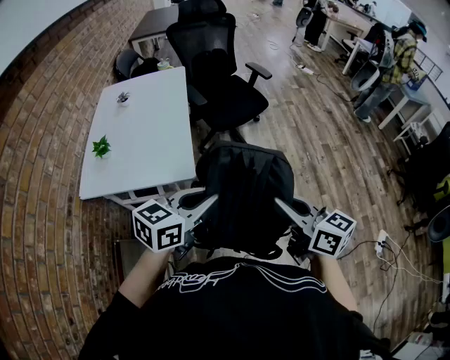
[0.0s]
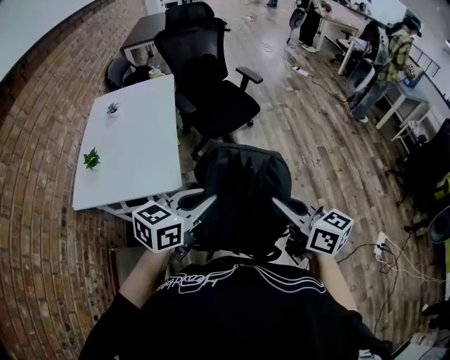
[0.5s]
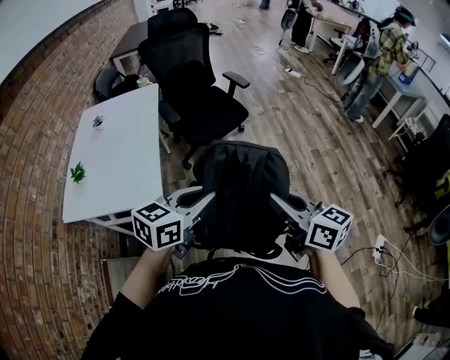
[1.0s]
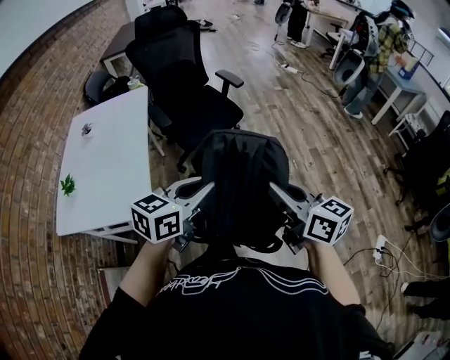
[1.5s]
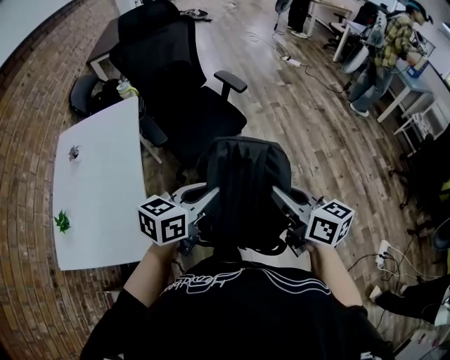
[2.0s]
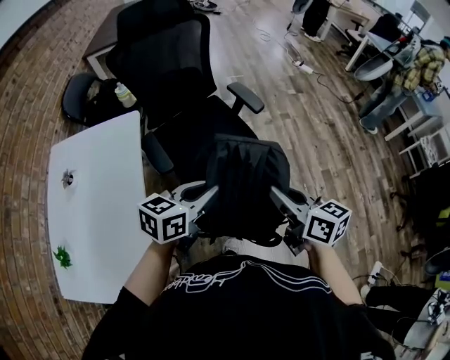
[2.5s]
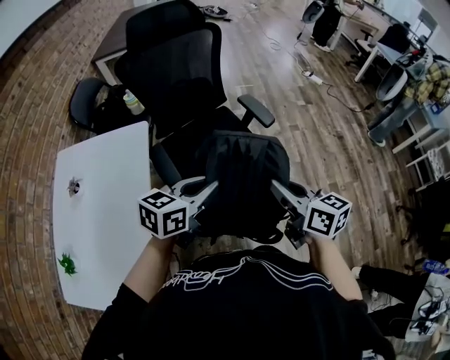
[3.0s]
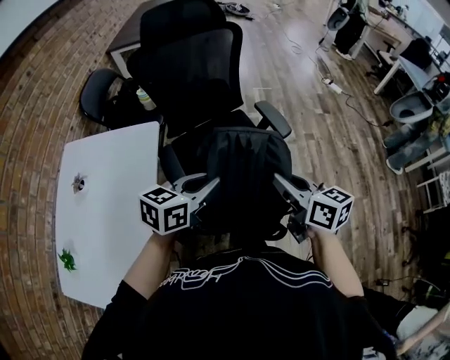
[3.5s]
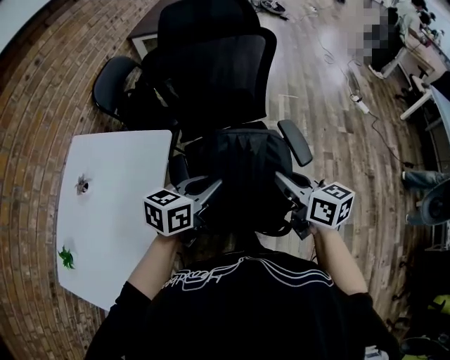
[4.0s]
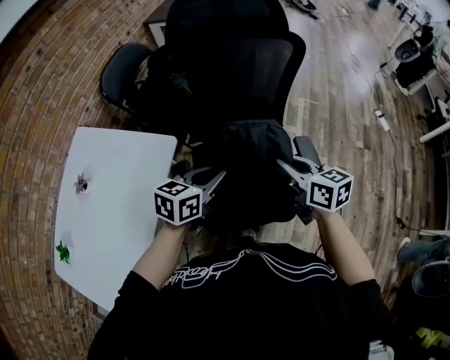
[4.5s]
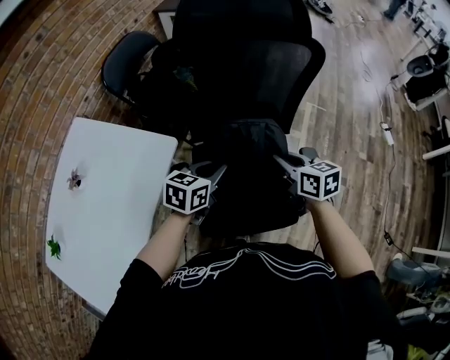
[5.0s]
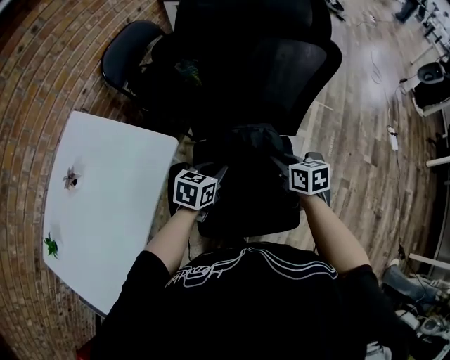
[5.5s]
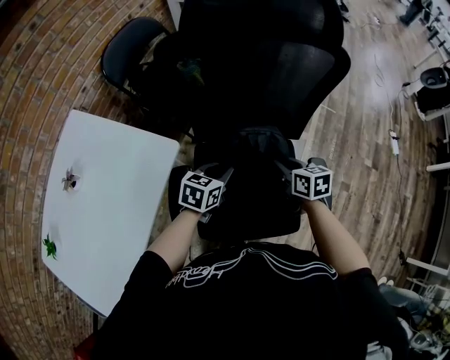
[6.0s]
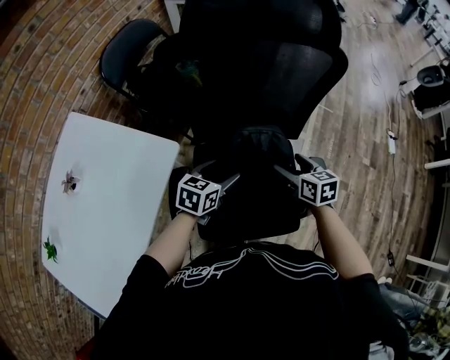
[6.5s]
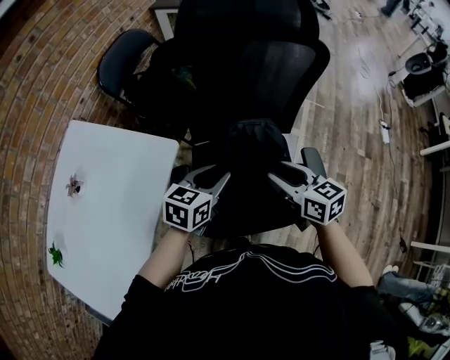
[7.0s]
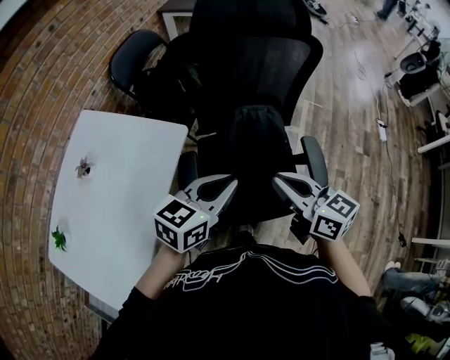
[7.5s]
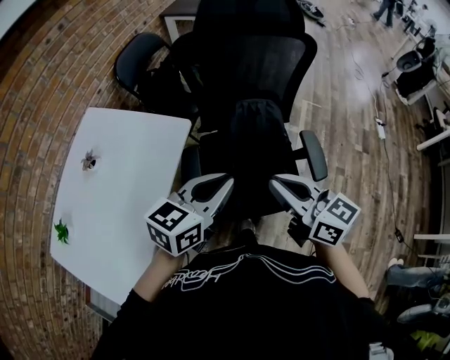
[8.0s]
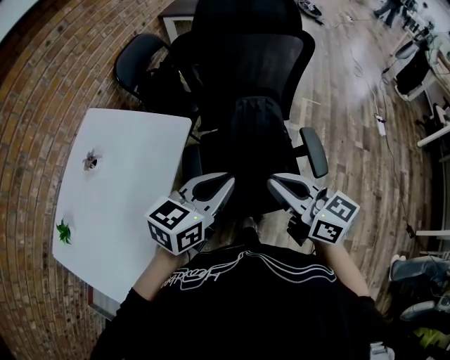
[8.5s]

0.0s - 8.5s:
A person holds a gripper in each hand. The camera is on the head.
0.0s - 2.0s: Both grippers move forward, approximately 30 cm.
2.0s - 4.0s: Both grippers are carried forward, roughly 50 cm. The left gripper swivels about 20 degrees, while the right gripper changes its angle by about 20 degrees.
4.0s - 6.5s: The grippers both shift forward and downward by about 30 cm. The left gripper opens up. Meanwhile the right gripper swivels some 20 degrees, and opens.
6.5s - 8.5s: The left gripper goes some 30 cm upward and backward, changes its angle by roughly 20 degrees, and closes up, while the right gripper heads backward, upward and to the left, covering some 35 cm, tips its fingers upward by some 30 degrees, and closes its fingers.

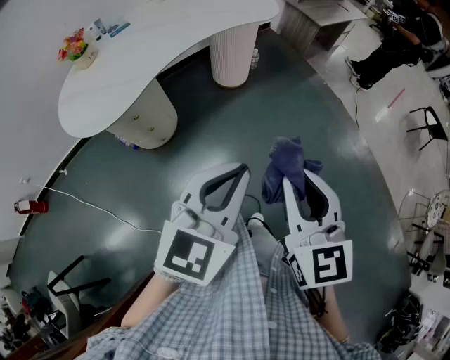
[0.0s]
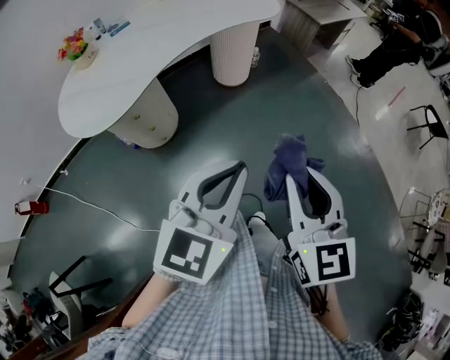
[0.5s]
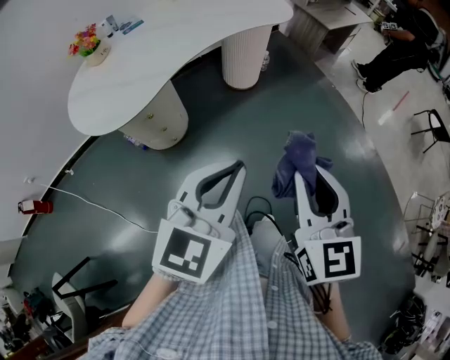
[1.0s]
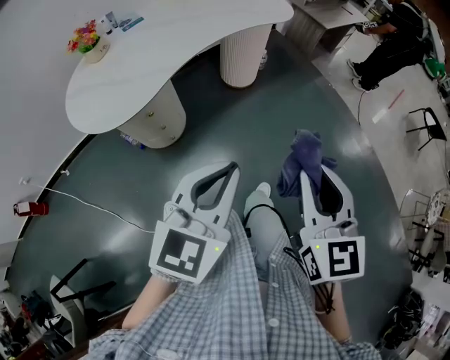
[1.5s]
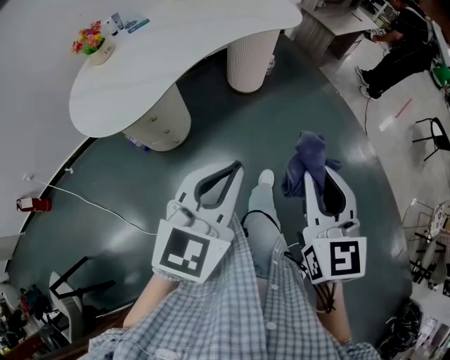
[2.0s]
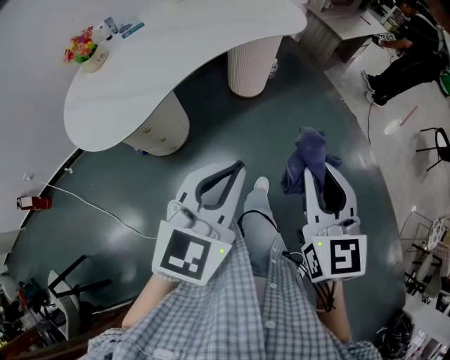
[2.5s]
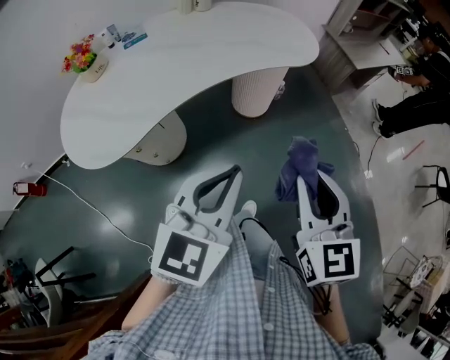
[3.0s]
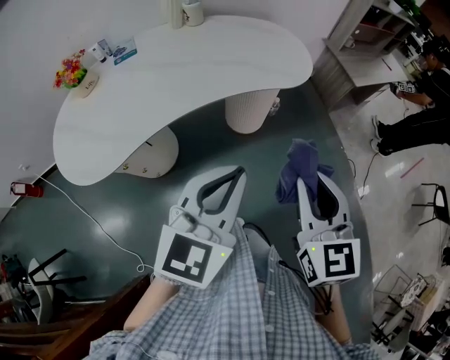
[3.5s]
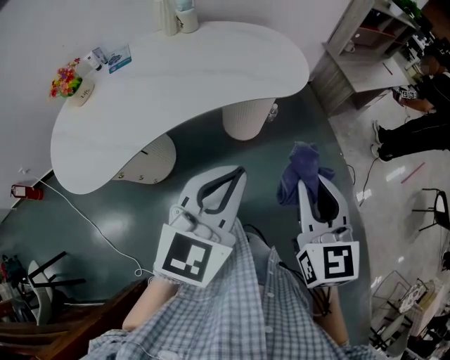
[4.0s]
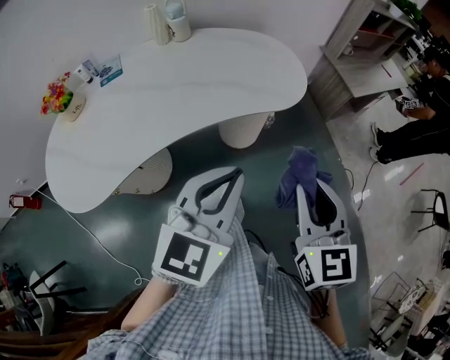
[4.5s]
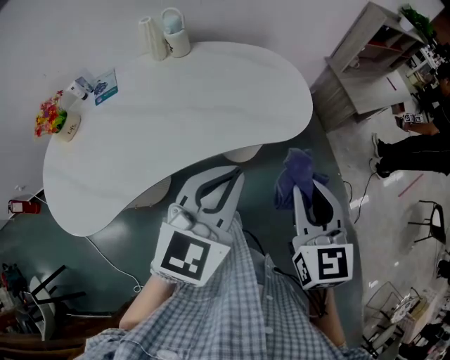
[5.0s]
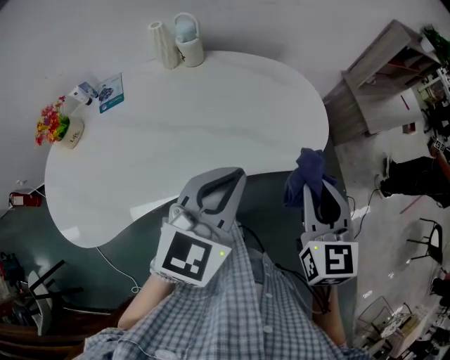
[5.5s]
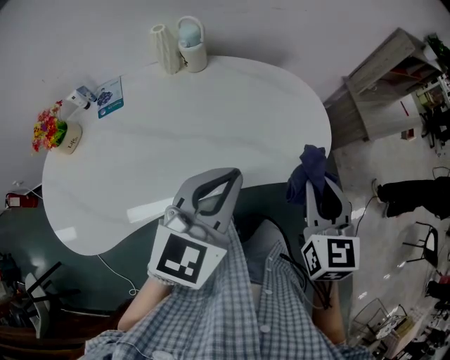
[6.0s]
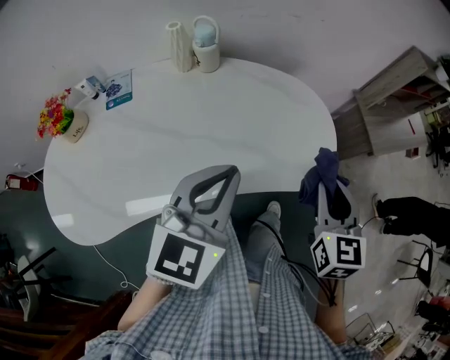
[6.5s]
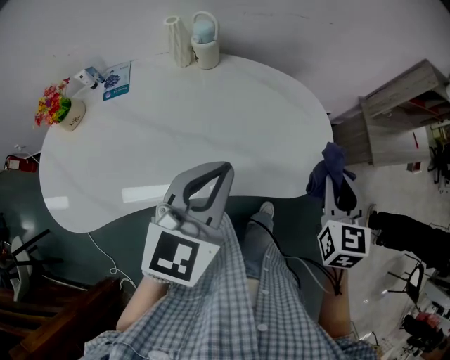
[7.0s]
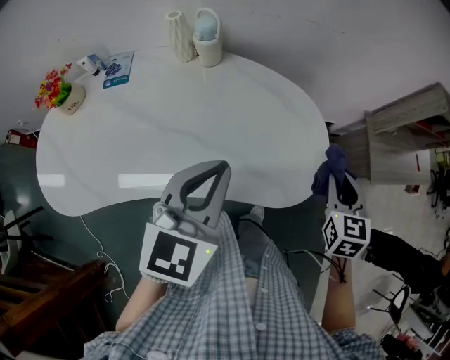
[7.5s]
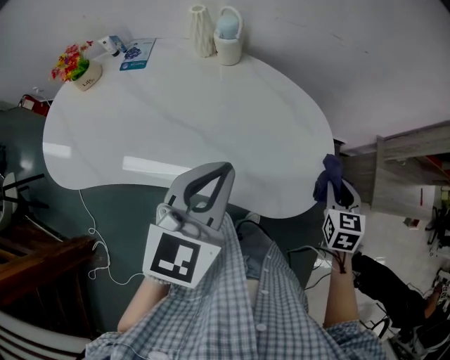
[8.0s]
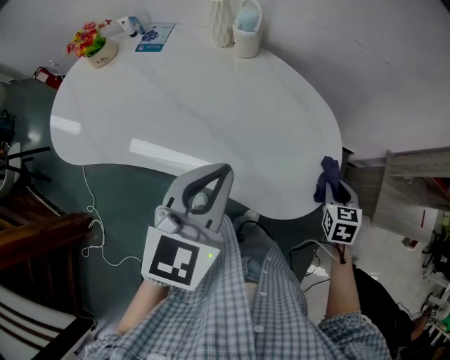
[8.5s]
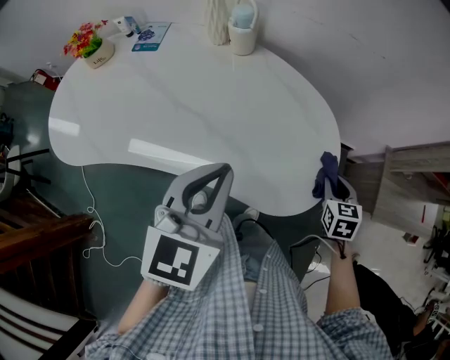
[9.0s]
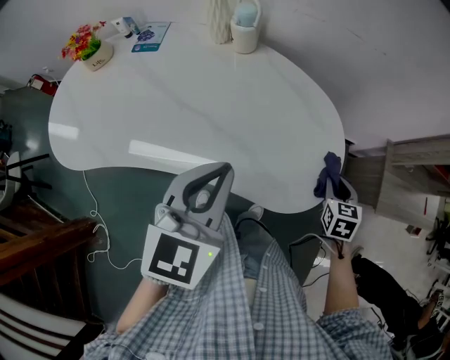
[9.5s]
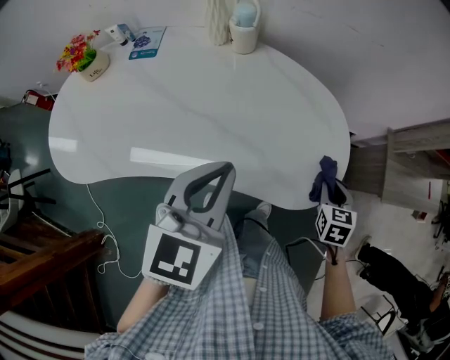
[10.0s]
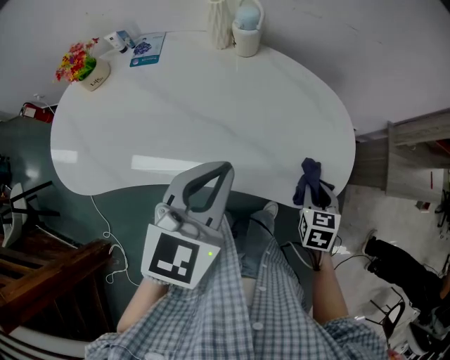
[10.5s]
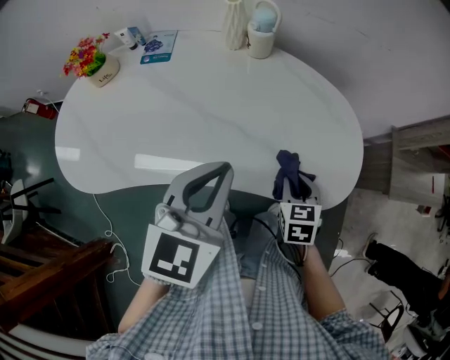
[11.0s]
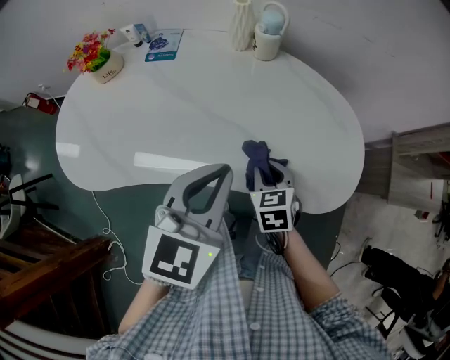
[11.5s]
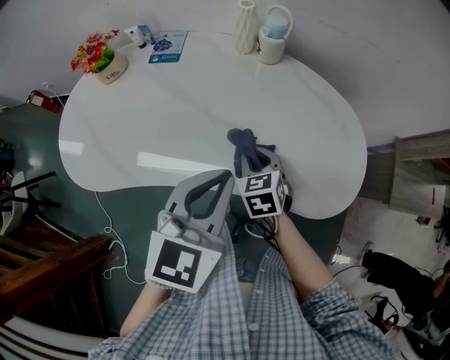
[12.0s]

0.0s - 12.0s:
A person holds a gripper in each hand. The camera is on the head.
0.0s - 2.0s: The right gripper moves approximately 5 cm; the left gripper shifts approximately 10 cm to the left.
2.0s - 4.0s: Both grippers move forward, about 35 cm.
4.0s - 6.0s: Both grippers move forward, roughly 30 cm.
6.0s - 8.0s: The left gripper goes approximately 10 cm forward, and rotates about 30 degrees, while the right gripper moves forward, to the right and downward, roughly 30 cm, and rotates roughly 30 degrees.
8.0s - 10.0s: The right gripper heads downward, covering roughly 5 cm.
10.0s - 12.0s: The right gripper heads to the left, covering some 35 cm, and turns by about 30 degrees. Meanwhile the left gripper is displaced to the left by some 10 cm.

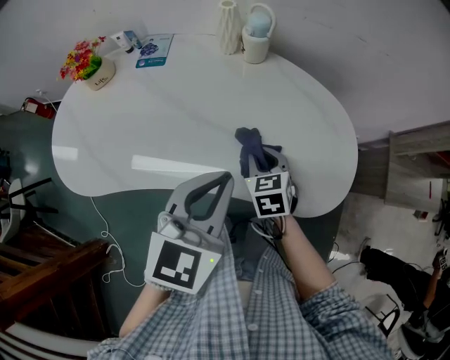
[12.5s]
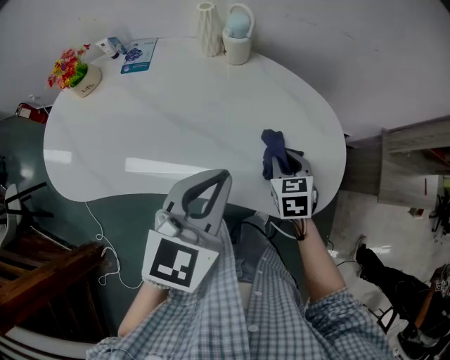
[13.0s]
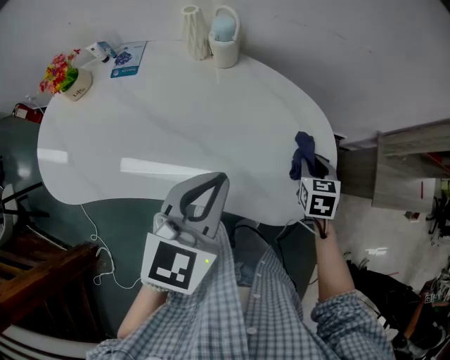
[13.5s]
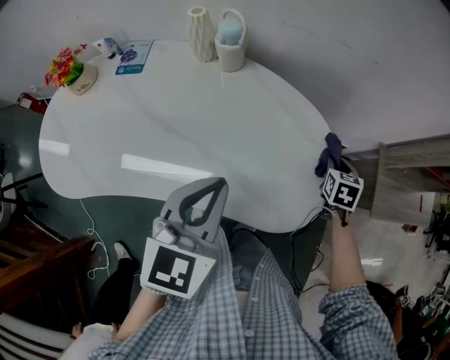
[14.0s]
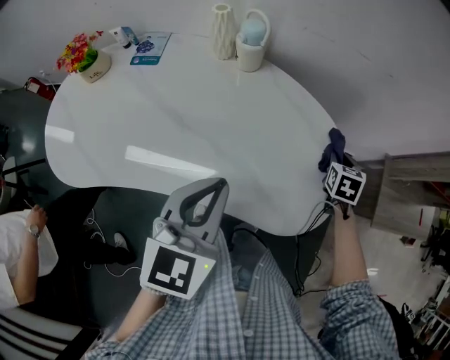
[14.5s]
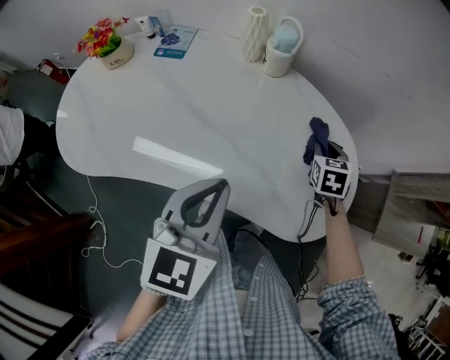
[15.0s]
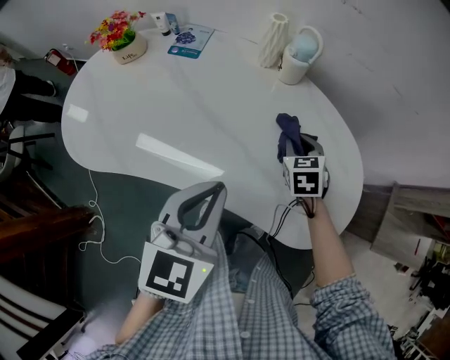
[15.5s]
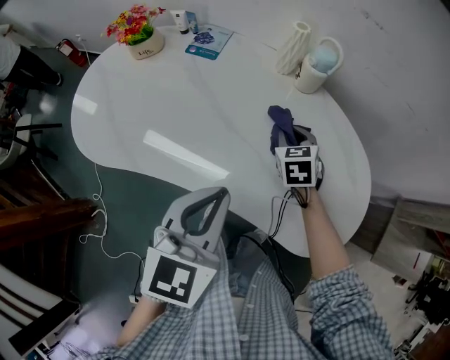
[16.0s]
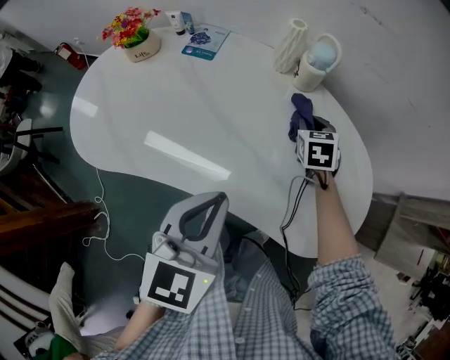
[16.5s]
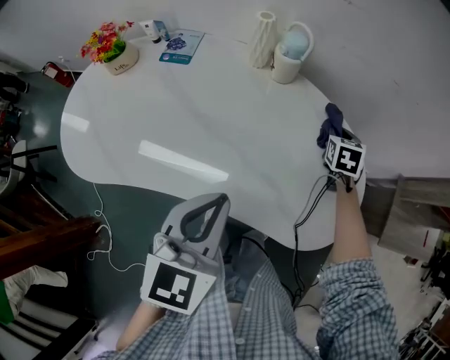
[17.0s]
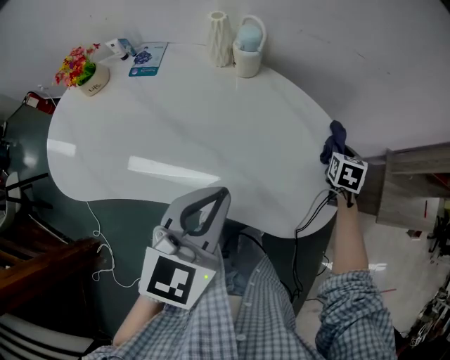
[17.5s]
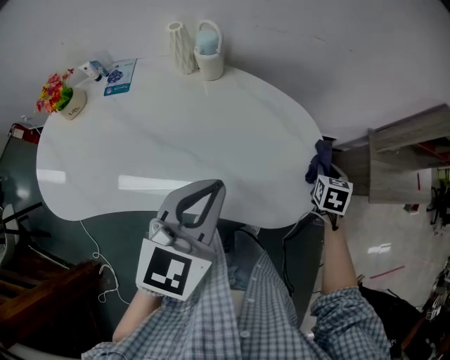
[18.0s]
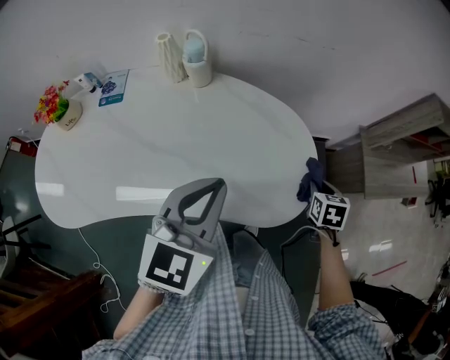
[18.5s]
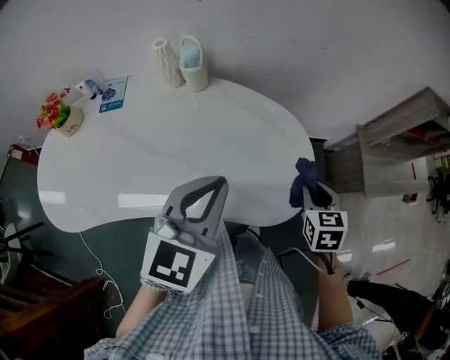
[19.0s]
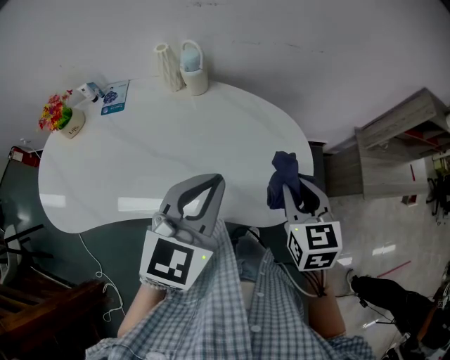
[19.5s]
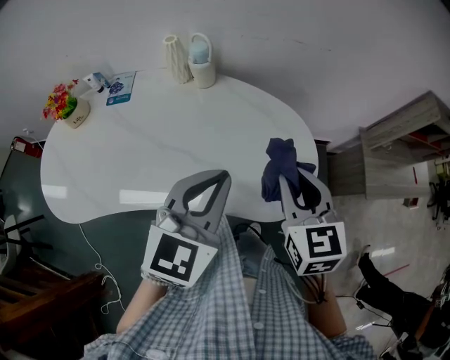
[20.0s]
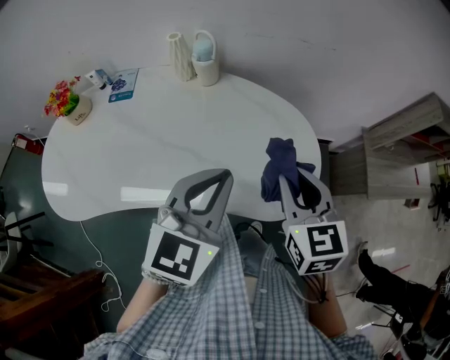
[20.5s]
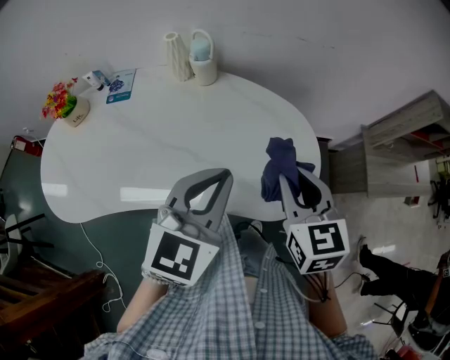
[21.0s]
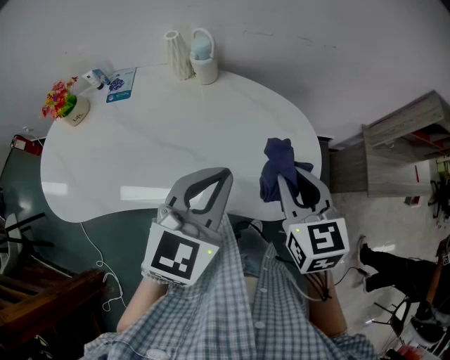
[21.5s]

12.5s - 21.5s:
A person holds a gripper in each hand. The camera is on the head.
12.5s - 14.5s: The right gripper travels to the right and forward by roughly 35 cm, and swivels some 30 degrees. Meanwhile the left gripper moves about 5 cm.
14.5s - 17.0s: The left gripper goes about 5 cm to the left; the right gripper moves to the left and forward, about 15 cm.
17.0s - 19.5s: The right gripper goes about 30 cm backward, upward and to the right. The left gripper moves to the right, about 10 cm, and changes its angle by roughly 20 degrees.
19.5s - 21.5s: The right gripper shifts by some 5 cm.
